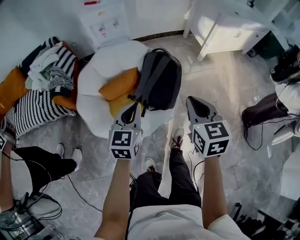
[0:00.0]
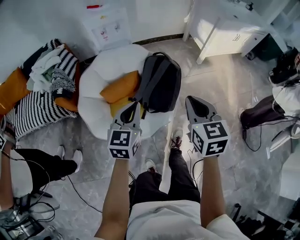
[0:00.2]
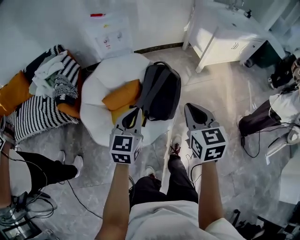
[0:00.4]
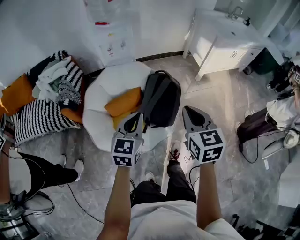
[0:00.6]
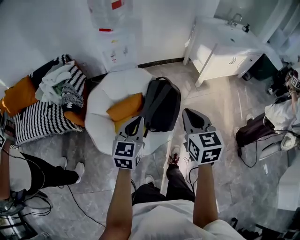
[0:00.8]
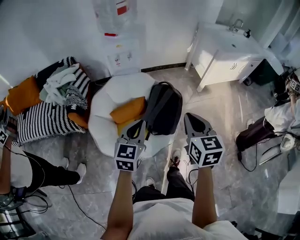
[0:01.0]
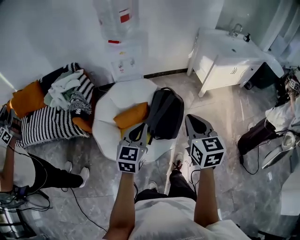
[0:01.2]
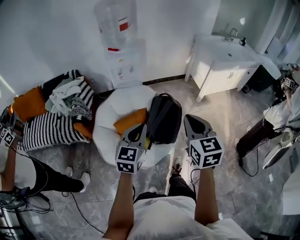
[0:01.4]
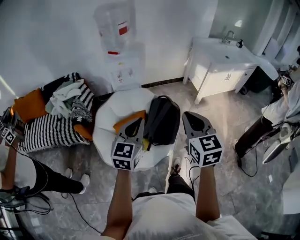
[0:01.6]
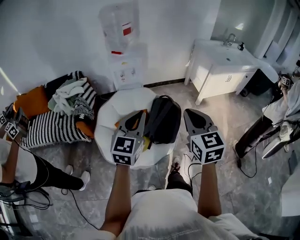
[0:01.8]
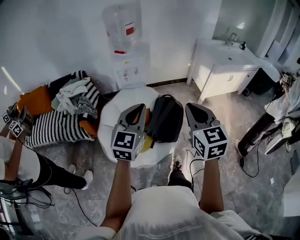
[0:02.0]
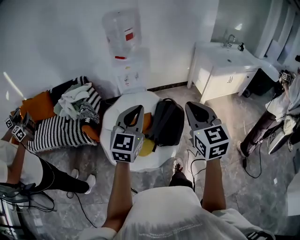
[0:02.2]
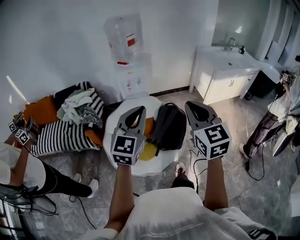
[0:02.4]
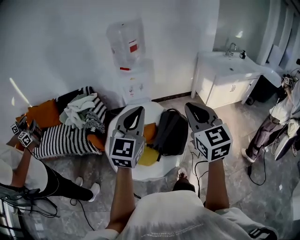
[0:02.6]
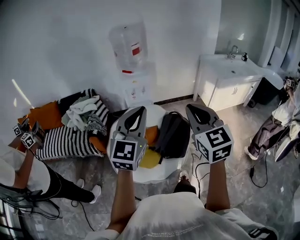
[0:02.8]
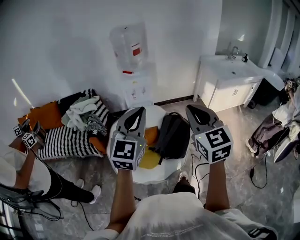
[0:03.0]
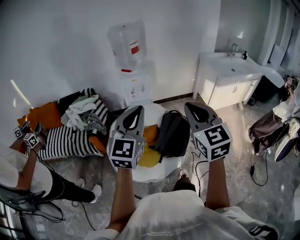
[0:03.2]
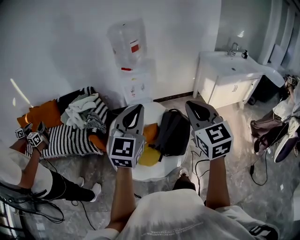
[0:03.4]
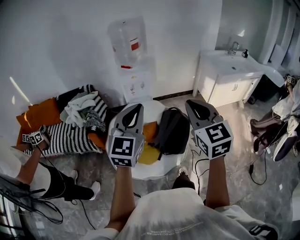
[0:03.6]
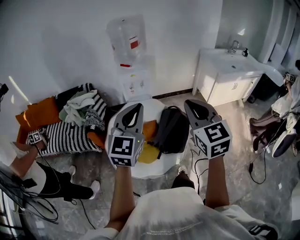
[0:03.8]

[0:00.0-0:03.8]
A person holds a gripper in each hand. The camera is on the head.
0.0 to 1.2 s: Both grippers travel together upward, some 15 cm.
1.2 to 2.6 s: Both grippers travel together upward, some 20 cm. The left gripper rotates roughly 20 degrees. Meanwhile the right gripper swivels about 20 degrees.
2.6 to 3.8 s: There are only small adjustments of the grippers.

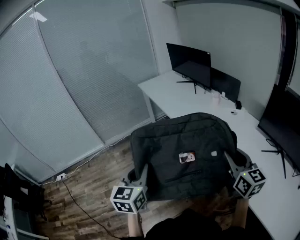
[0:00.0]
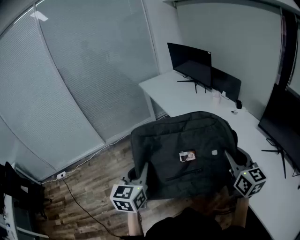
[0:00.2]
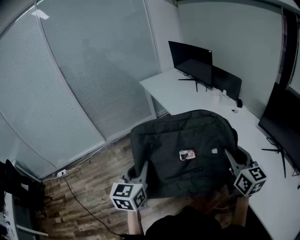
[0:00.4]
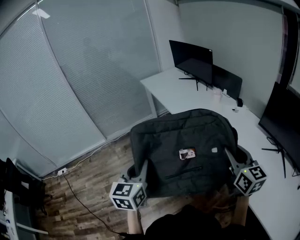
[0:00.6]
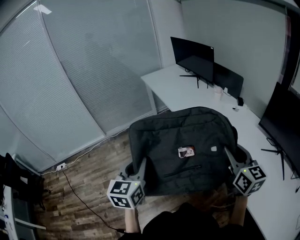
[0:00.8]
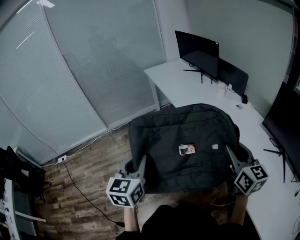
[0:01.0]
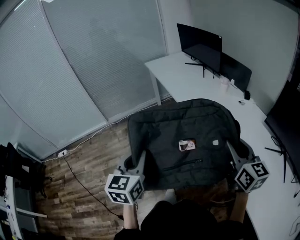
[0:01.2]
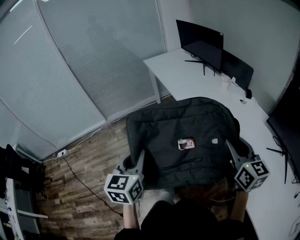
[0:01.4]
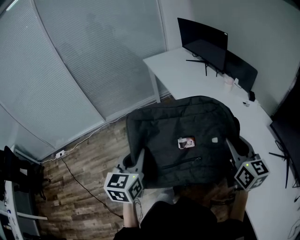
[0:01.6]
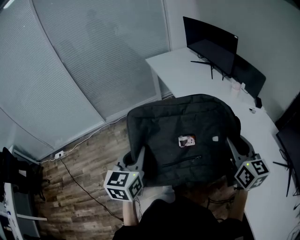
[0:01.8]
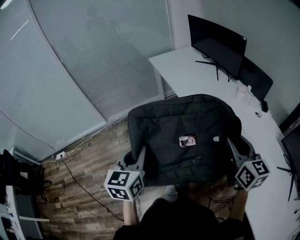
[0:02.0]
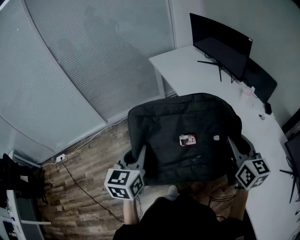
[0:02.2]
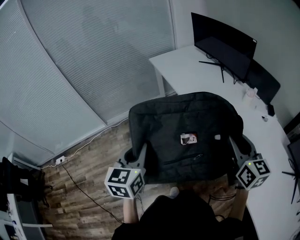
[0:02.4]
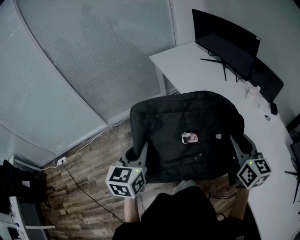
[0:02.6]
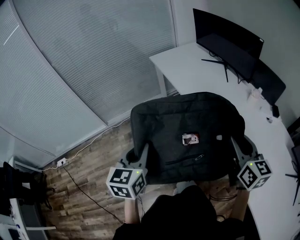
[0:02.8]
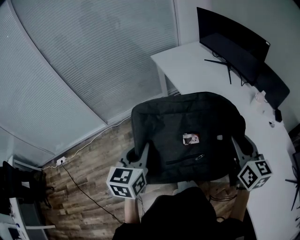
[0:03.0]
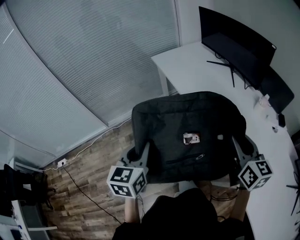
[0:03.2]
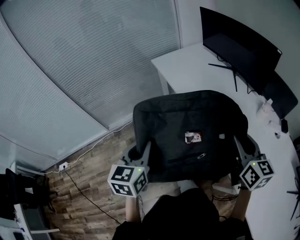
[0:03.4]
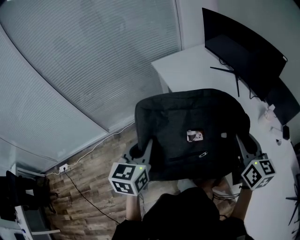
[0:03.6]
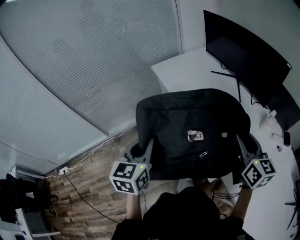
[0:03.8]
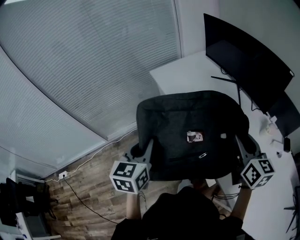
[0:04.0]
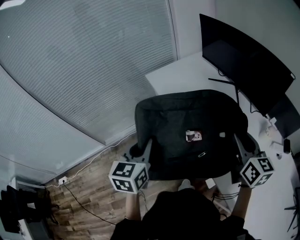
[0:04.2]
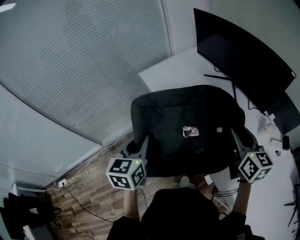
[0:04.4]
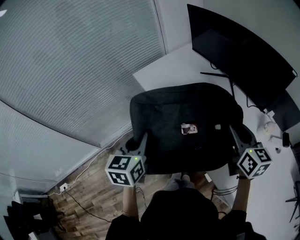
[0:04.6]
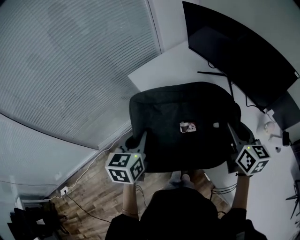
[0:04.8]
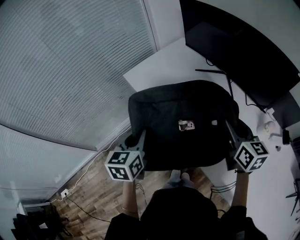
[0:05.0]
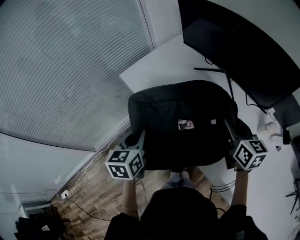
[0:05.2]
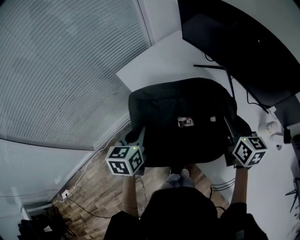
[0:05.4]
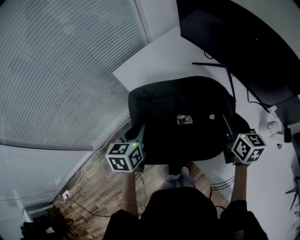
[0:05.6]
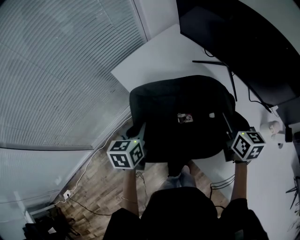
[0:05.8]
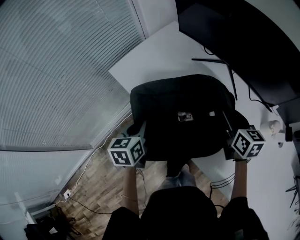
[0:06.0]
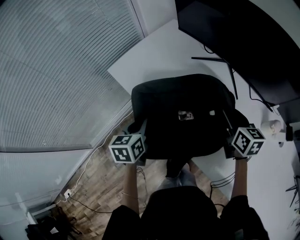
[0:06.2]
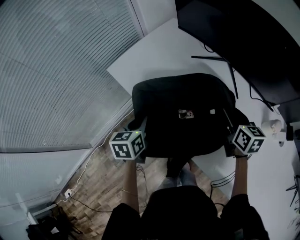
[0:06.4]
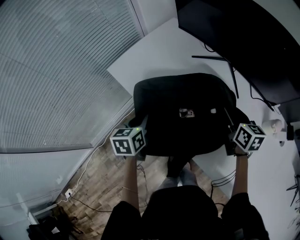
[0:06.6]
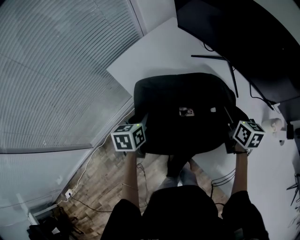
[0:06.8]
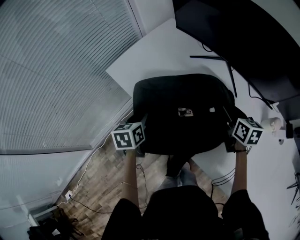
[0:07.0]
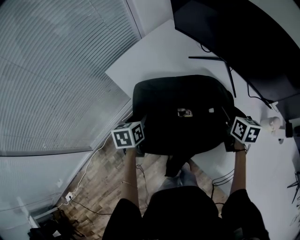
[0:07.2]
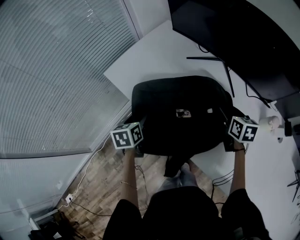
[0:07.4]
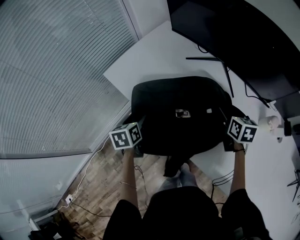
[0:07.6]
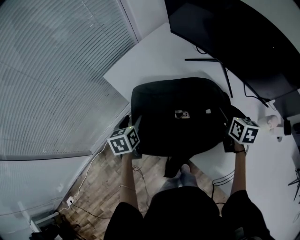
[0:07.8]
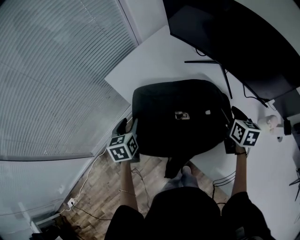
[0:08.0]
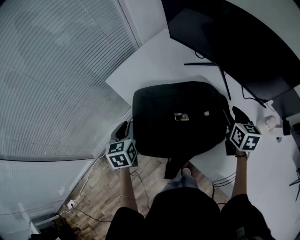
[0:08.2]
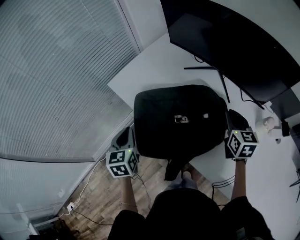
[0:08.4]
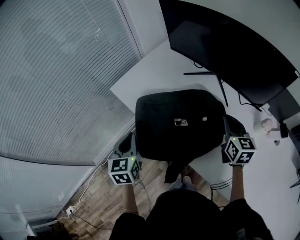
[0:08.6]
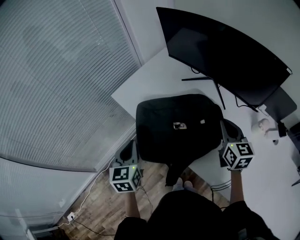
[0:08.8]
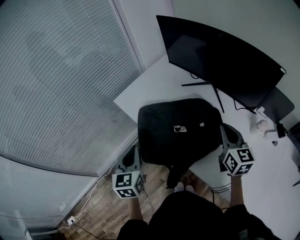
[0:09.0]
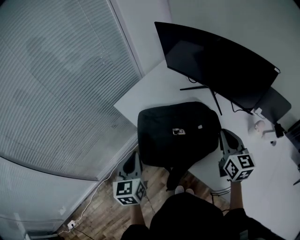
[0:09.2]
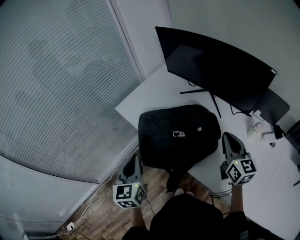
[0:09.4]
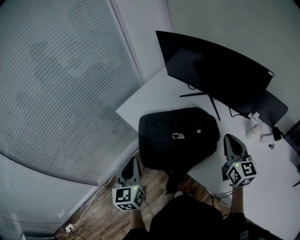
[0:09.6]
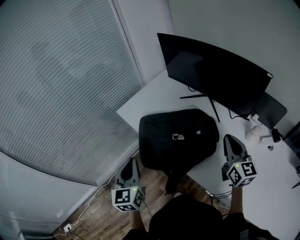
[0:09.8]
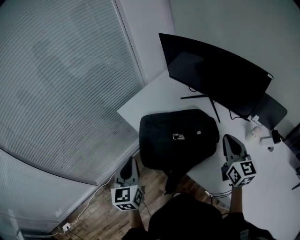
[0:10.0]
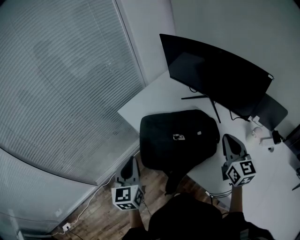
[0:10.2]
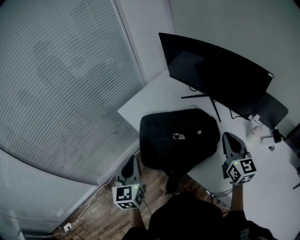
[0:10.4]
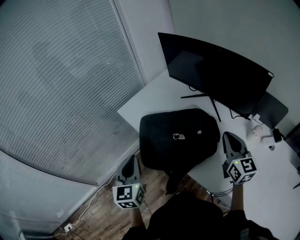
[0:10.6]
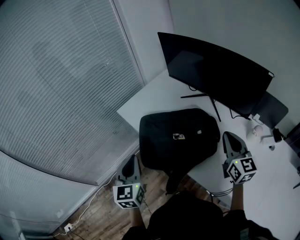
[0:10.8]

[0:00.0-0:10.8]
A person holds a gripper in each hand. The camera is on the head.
0.0 to 1.6 s: The two grippers go approximately 5 cm forward.
1.6 to 3.0 s: The left gripper heads forward, covering about 25 cm. The right gripper travels forward and to the left by about 25 cm.
3.0 to 4.6 s: Both grippers travel together forward, approximately 35 cm.
4.6 to 6.2 s: Both grippers travel together forward and downward, roughly 20 cm.
6.2 to 7.8 s: The left gripper shifts by some 5 cm, and opens; the right gripper moves approximately 5 cm, and opens.
7.8 to 9.2 s: The two grippers go roughly 20 cm upward and backward. The left gripper swivels roughly 30 degrees, and closes up, while the right gripper changes its angle by about 30 degrees, and closes up.
9.2 to 10.8 s: The grippers stay close to where they were, moving slightly.

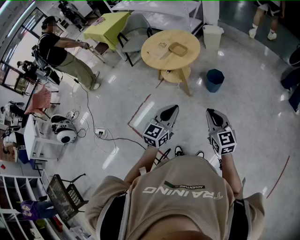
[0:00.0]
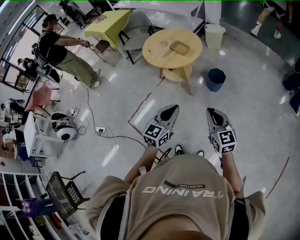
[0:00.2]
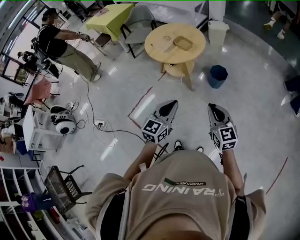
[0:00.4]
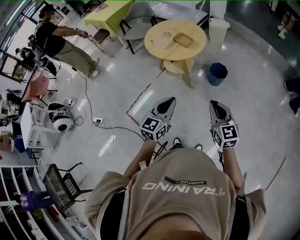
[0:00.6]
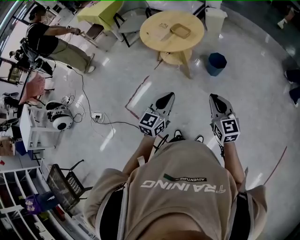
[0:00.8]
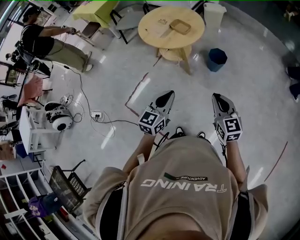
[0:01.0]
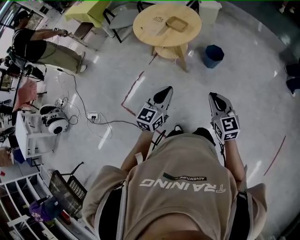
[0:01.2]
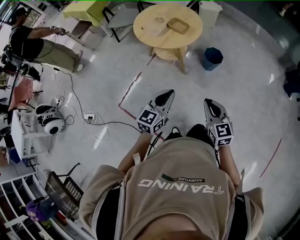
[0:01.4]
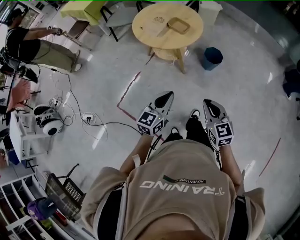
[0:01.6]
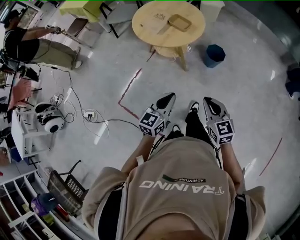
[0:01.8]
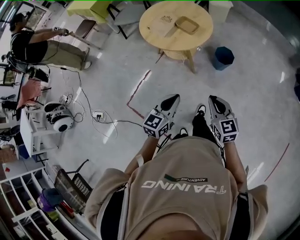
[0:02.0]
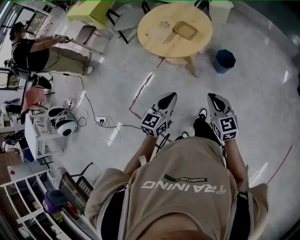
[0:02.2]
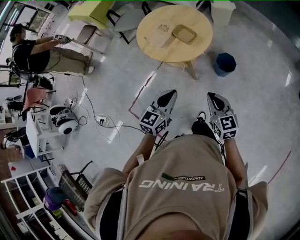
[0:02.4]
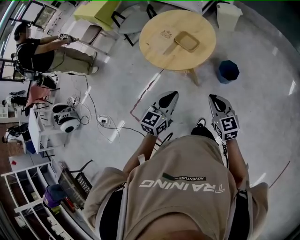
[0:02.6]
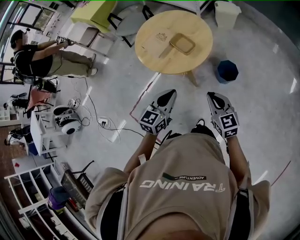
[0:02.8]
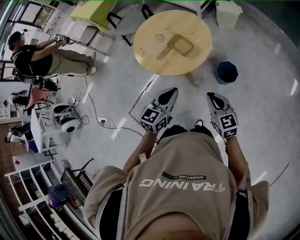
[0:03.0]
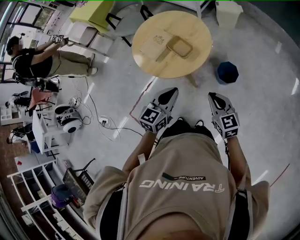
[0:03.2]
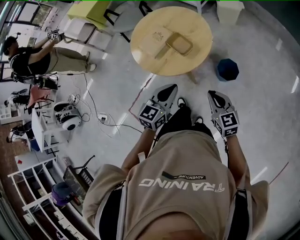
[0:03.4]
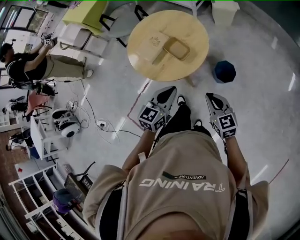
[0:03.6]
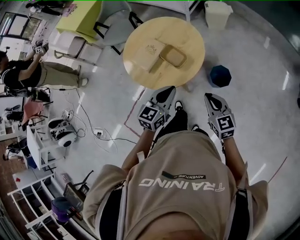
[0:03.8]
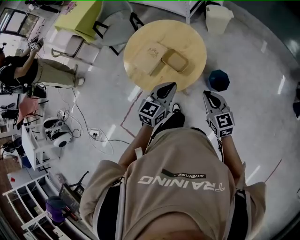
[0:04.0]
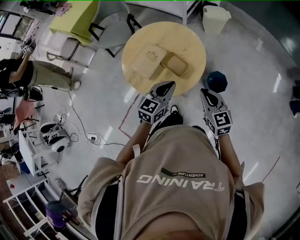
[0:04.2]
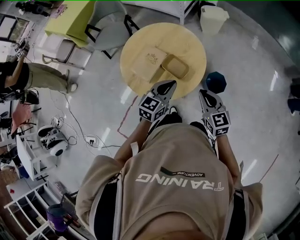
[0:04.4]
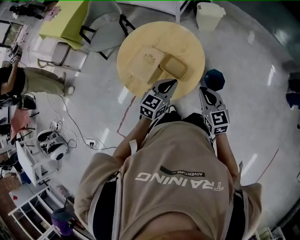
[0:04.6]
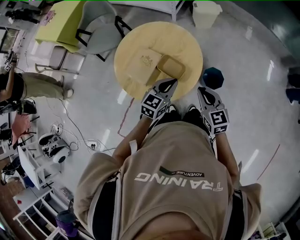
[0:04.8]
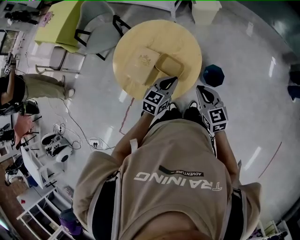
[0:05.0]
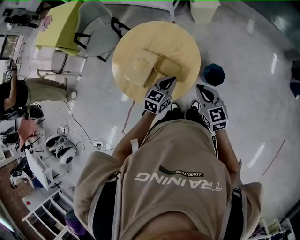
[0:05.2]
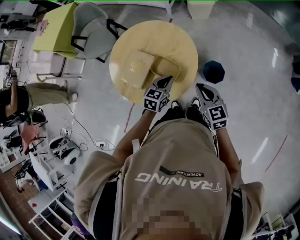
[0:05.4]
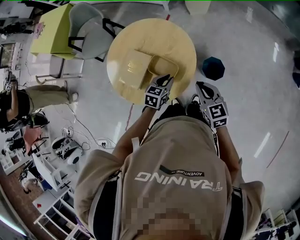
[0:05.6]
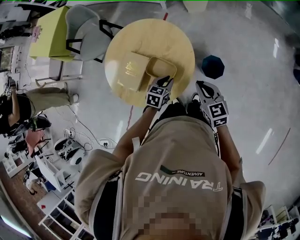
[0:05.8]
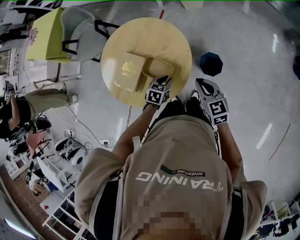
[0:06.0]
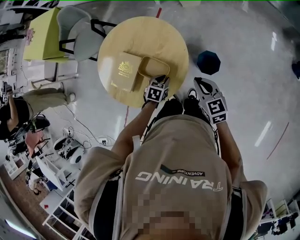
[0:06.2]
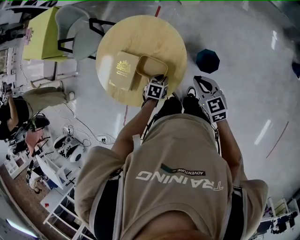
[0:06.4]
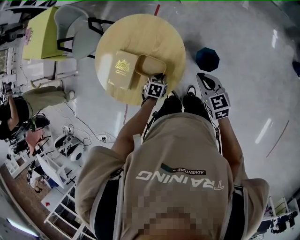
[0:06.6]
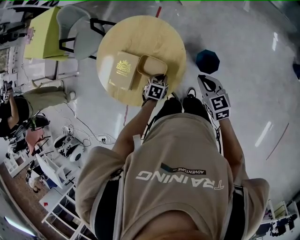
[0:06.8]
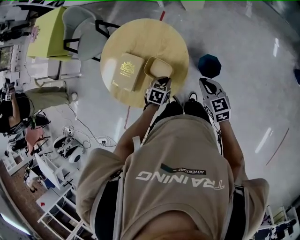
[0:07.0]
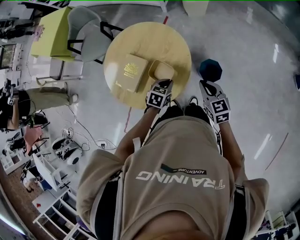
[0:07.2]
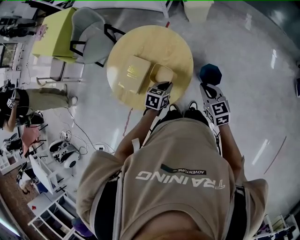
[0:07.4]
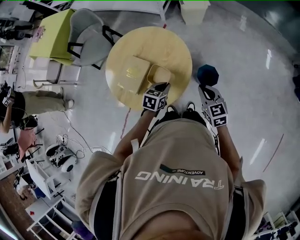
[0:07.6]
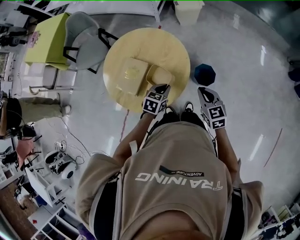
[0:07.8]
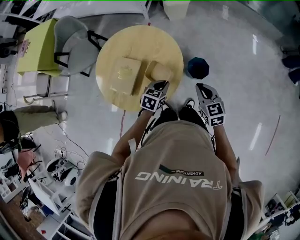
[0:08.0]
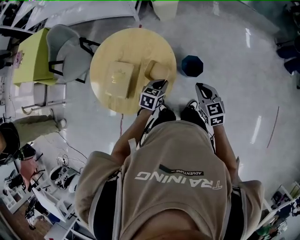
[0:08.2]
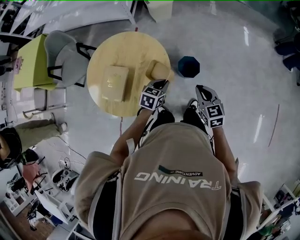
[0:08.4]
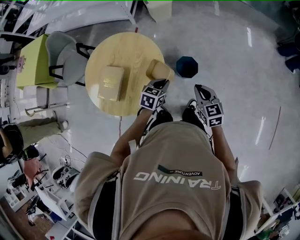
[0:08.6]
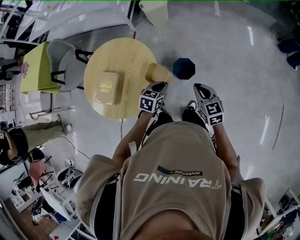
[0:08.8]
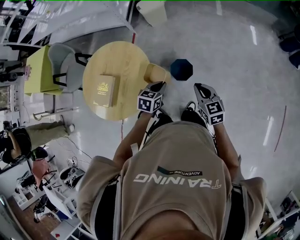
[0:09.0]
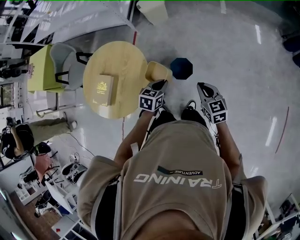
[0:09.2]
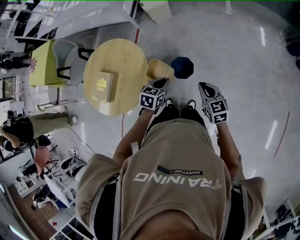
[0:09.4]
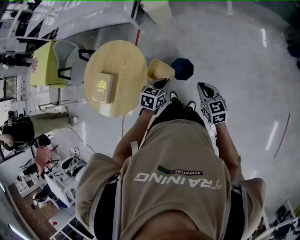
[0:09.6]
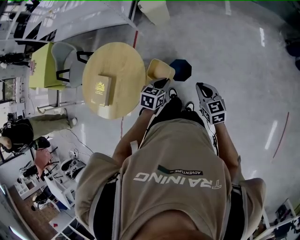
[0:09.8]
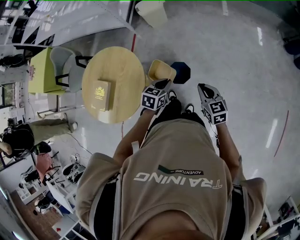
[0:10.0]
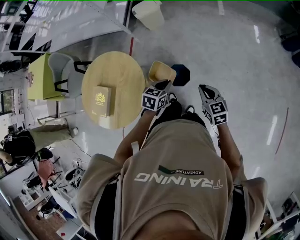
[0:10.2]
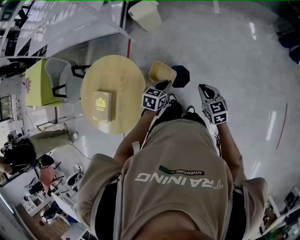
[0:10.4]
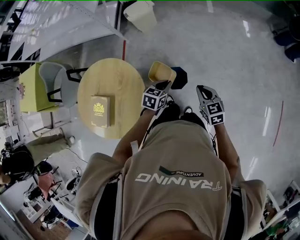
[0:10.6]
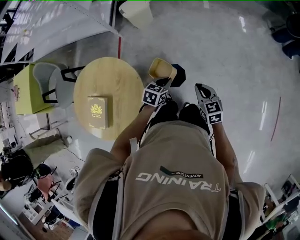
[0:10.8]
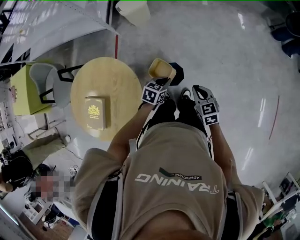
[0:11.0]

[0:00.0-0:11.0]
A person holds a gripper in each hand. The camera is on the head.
0.0 to 1.6 s: The right gripper is displaced to the left, downward and forward by roughly 15 cm, while the left gripper travels to the left, forward and downward by roughly 15 cm.
1.6 to 3.2 s: The right gripper goes about 35 cm forward, while the left gripper heads forward and to the right, covering roughly 35 cm.
3.2 to 4.8 s: The left gripper moves forward, roughly 20 cm; the right gripper is displaced forward and to the left by approximately 20 cm.
4.8 to 6.2 s: The right gripper shifts about 15 cm forward, to the right and downward; the left gripper heads downward, covering about 20 cm, and tilts its fingers about 40 degrees downward.
6.2 to 7.8 s: The left gripper shifts some 10 cm upward; the right gripper goes approximately 5 cm backward.
7.8 to 9.4 s: Both grippers move to the right, some 30 cm.
9.4 to 11.0 s: The two grippers go roughly 15 cm forward and downward.
